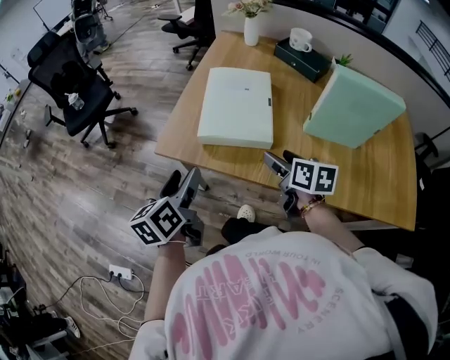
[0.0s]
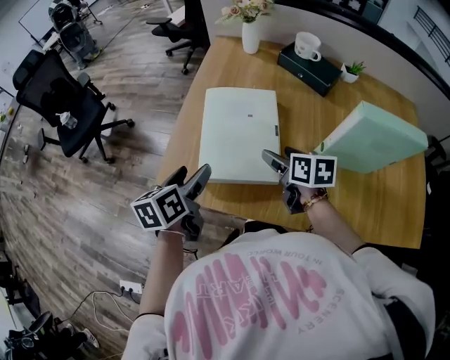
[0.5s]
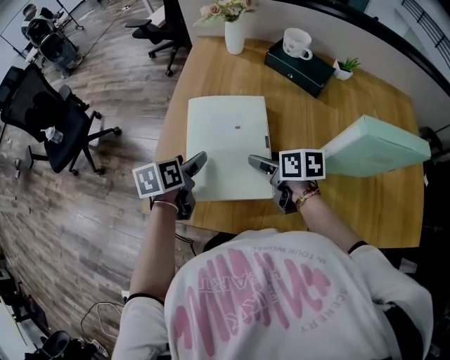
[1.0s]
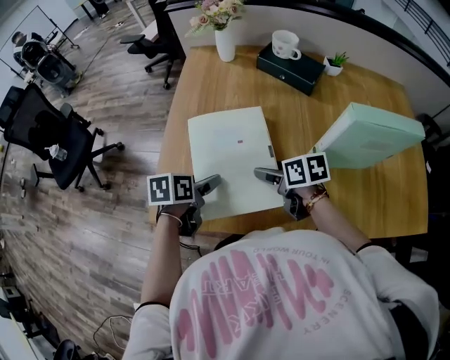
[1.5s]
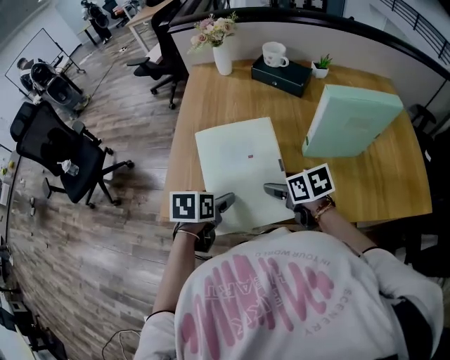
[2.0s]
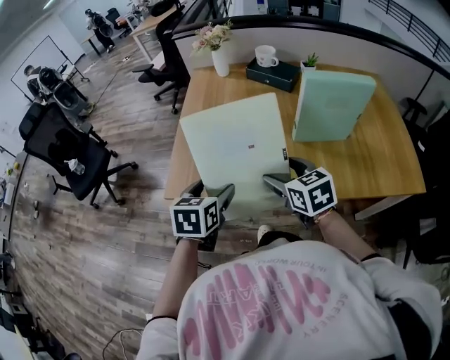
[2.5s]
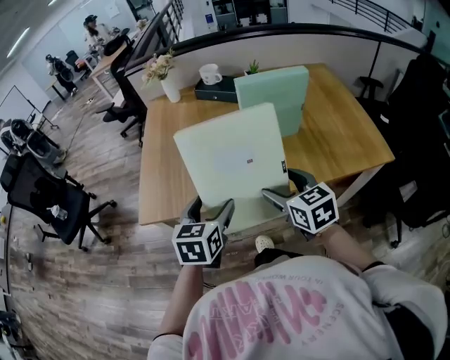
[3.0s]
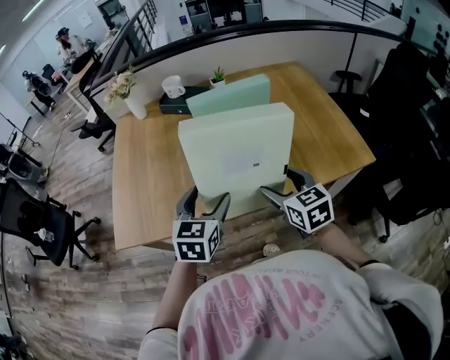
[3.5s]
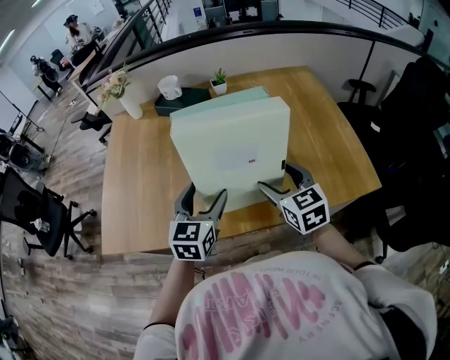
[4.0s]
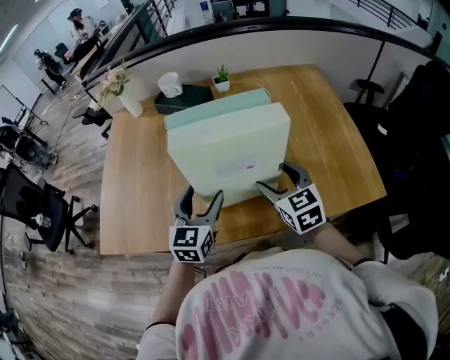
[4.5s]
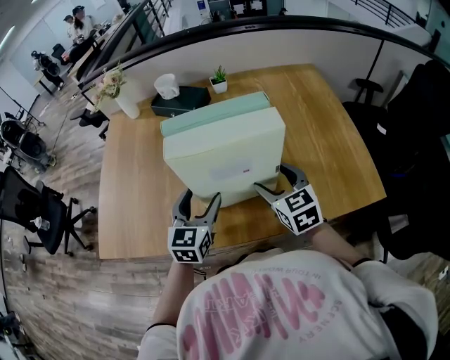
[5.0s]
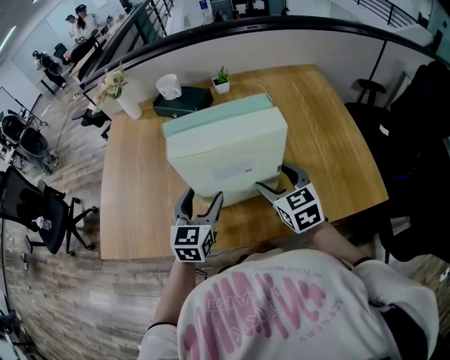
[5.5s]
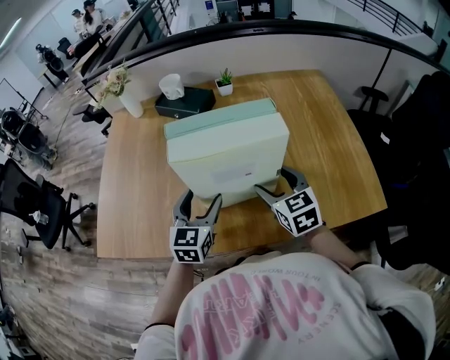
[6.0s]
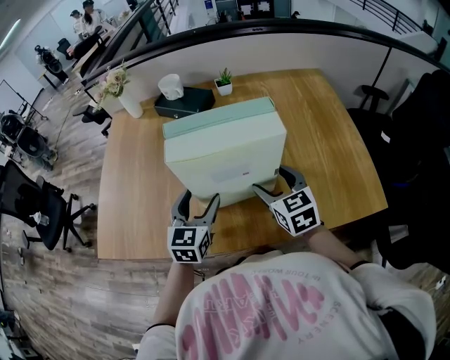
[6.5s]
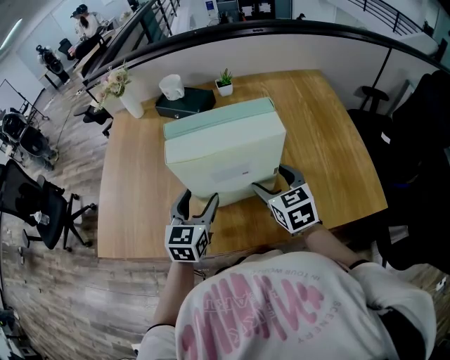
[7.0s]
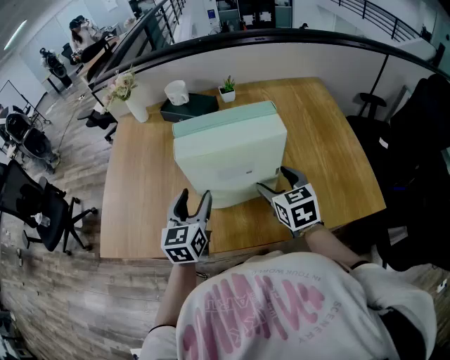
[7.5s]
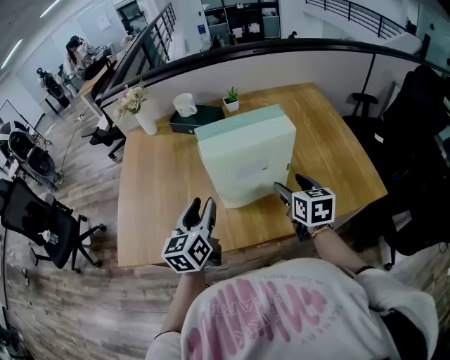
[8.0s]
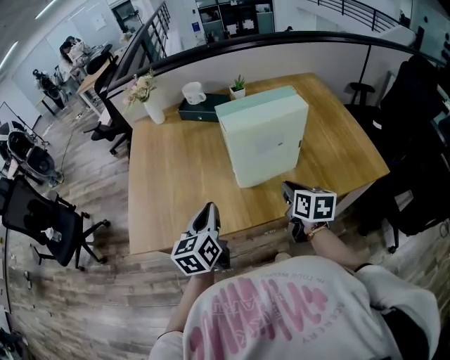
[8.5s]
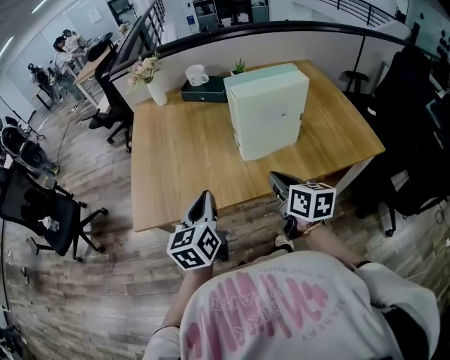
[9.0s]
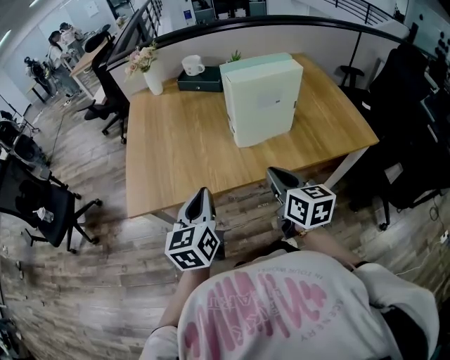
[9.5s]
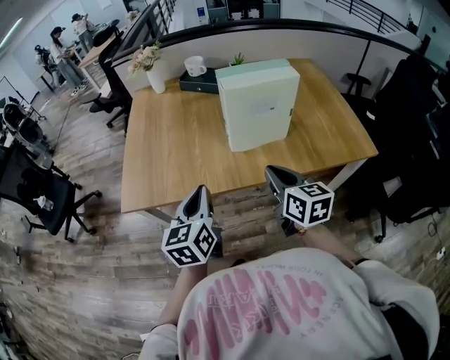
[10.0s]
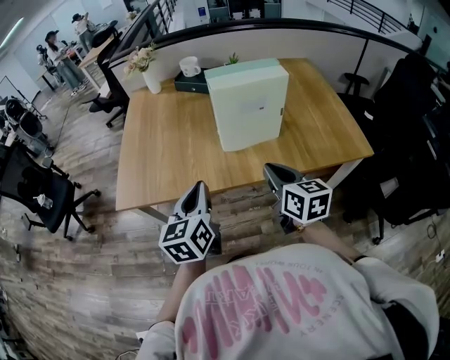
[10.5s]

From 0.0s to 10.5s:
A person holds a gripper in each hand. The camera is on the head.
From 0.0s to 2.0s: The left gripper heads forward, downward and to the right, covering roughly 20 cm, and angles its fingers downward, by approximately 30 degrees. The right gripper goes forward and returns, approximately 20 cm each way.
From 2.0s to 4.0s: The two grippers go some 30 cm to the right. The left gripper points its fingers some 30 degrees further upward. The right gripper swivels some 40 degrees.
From 4.0s to 6.5s: Both grippers travel together forward, approximately 5 cm.
From 6.5s to 8.5s: The left gripper travels to the left and backward by about 15 cm, changes its angle by some 20 degrees, and closes its fingers, while the right gripper shifts roughly 15 cm backward and to the left, turns by roughly 40 degrees, and closes its fingers.
From 8.5s to 10.5s: The right gripper is displaced backward and upward by some 15 cm; the left gripper goes roughly 10 cm backward.

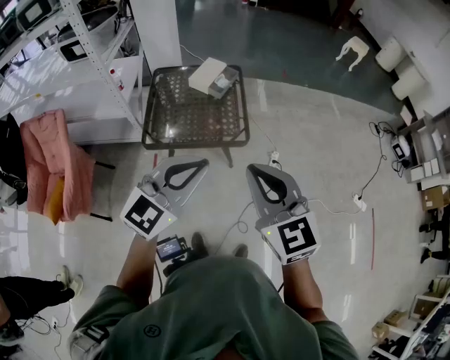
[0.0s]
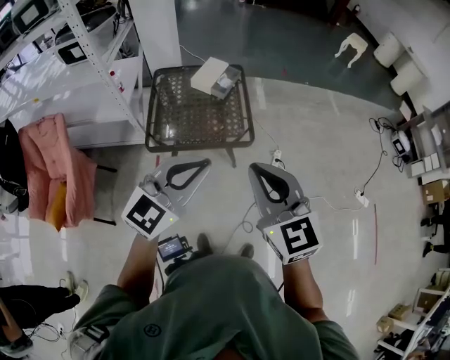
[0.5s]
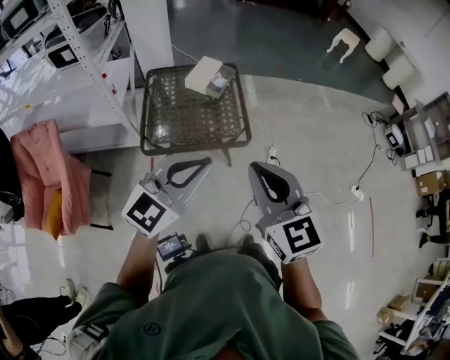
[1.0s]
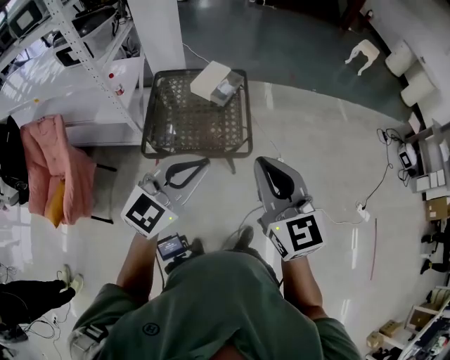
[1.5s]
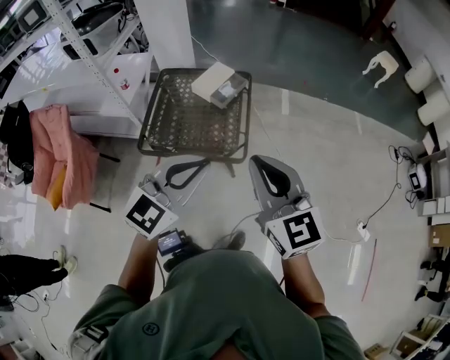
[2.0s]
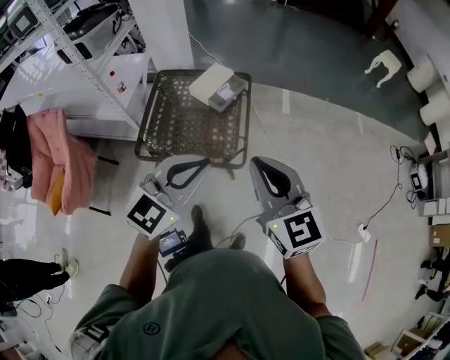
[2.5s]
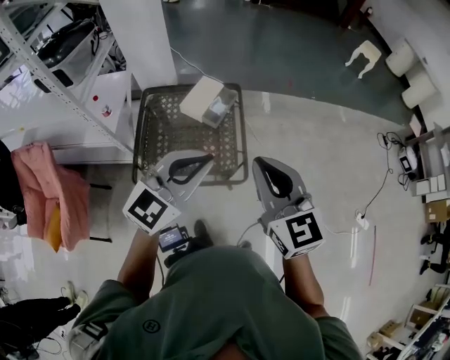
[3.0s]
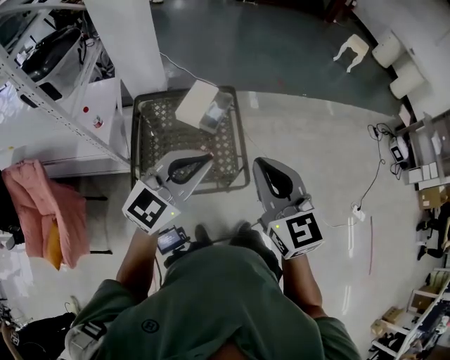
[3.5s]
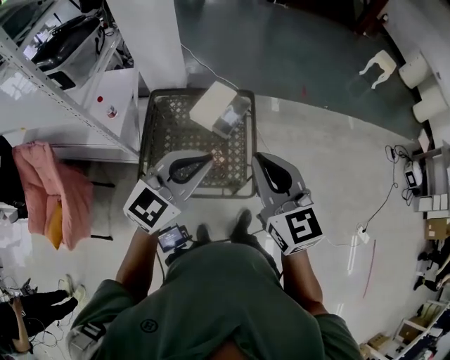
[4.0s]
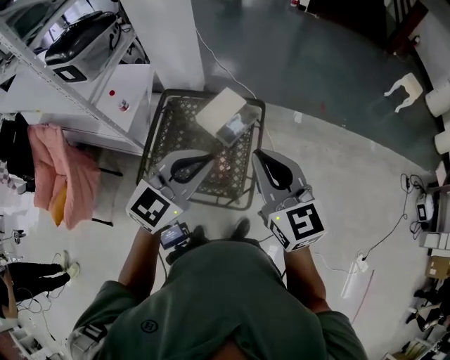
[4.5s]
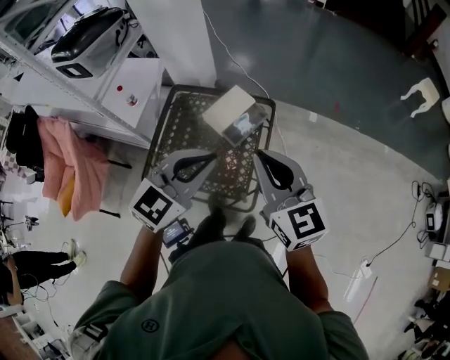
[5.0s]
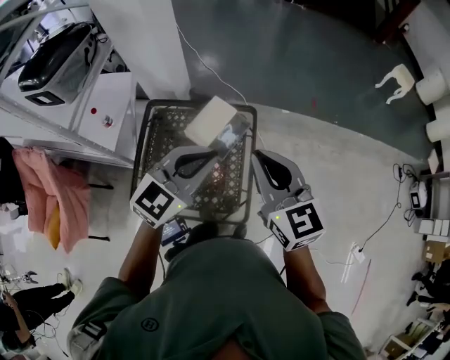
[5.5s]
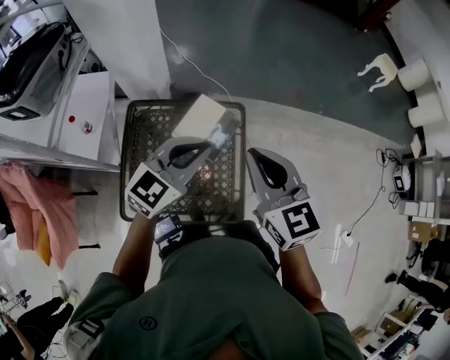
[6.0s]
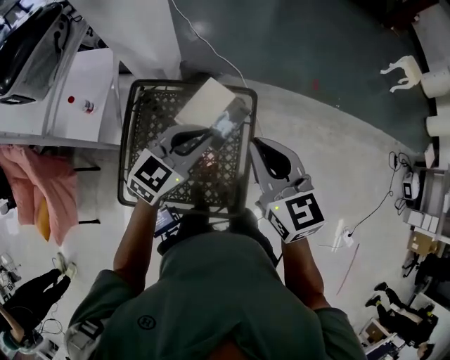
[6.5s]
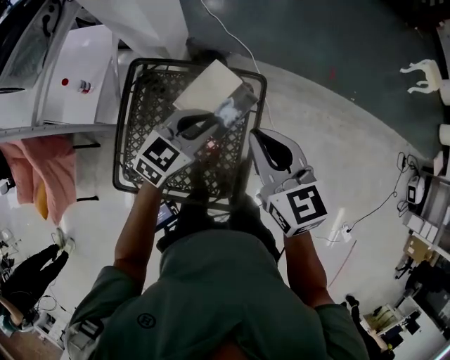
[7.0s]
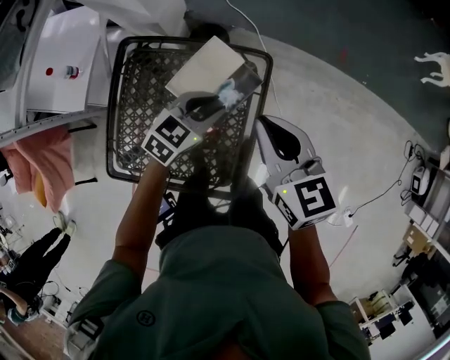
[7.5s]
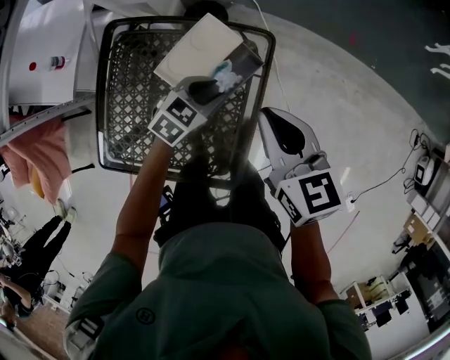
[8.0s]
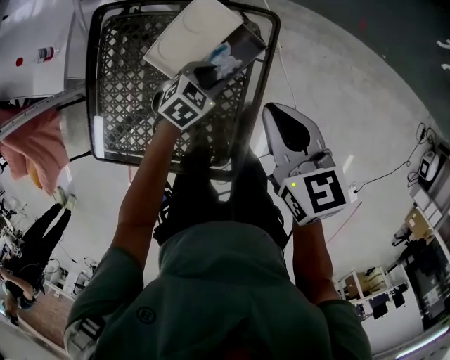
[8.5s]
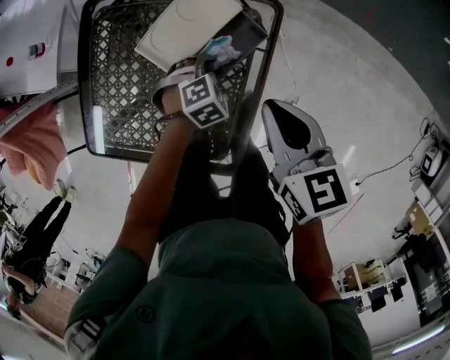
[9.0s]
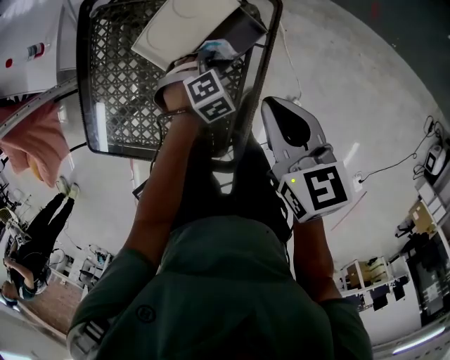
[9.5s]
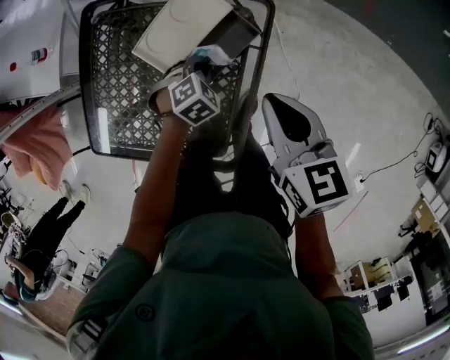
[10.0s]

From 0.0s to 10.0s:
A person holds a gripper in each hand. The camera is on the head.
From 0.0s to 2.0s: The grippers both shift forward and to the right by roughly 20 cm.
From 2.0s to 4.0s: The grippers both shift forward and to the left by some 25 cm.
From 4.0s to 6.0s: Both grippers travel together forward, about 25 cm.
From 6.0s to 8.0s: The left gripper is displaced downward by roughly 40 cm, points its fingers approximately 30 degrees further downward, and opens. The right gripper heads downward and forward, covering about 30 cm, and swivels approximately 20 degrees.
From 8.0s to 10.0s: The left gripper goes about 15 cm downward, turns by approximately 30 degrees, and closes; the right gripper goes approximately 10 cm downward.

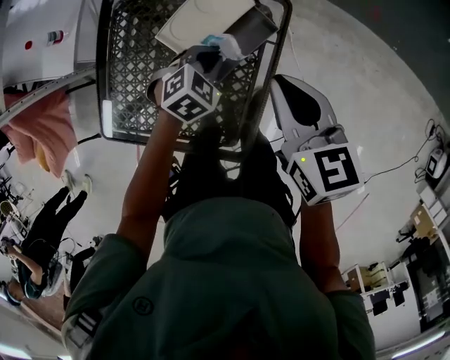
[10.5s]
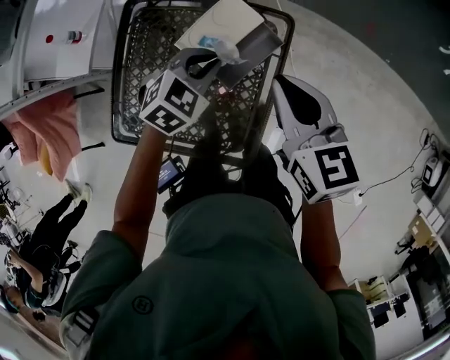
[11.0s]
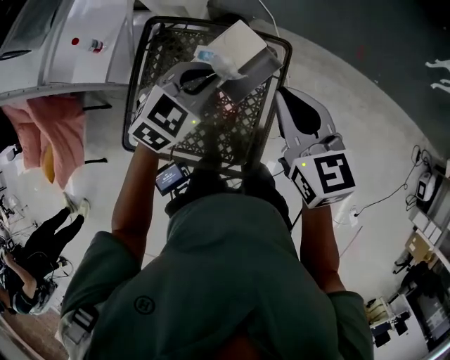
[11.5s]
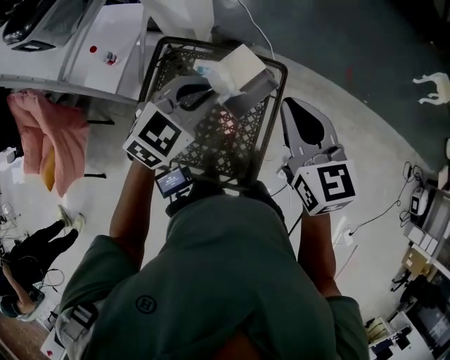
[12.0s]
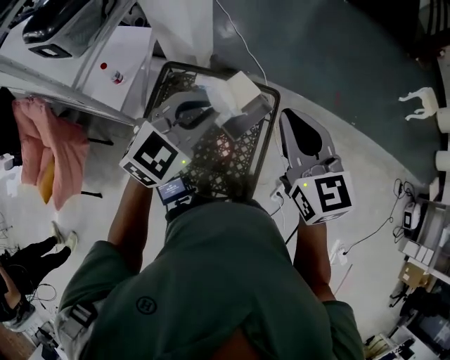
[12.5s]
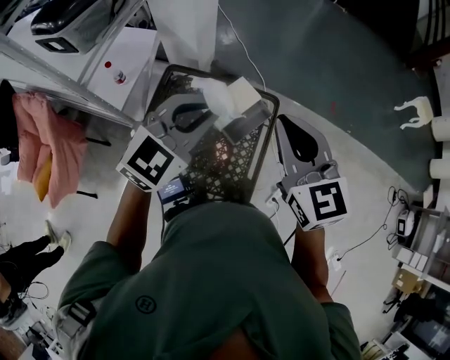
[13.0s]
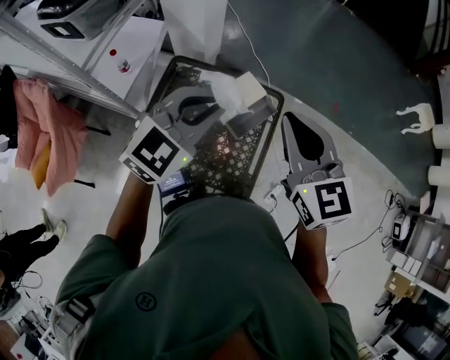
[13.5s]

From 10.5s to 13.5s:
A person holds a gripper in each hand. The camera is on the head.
From 10.5s to 12.0s: The right gripper is displaced upward and backward by approximately 20 cm, and changes its angle by approximately 20 degrees; the left gripper shifts roughly 35 cm upward, and turns by roughly 30 degrees.
From 12.0s to 13.5s: The right gripper travels upward by about 10 cm, while the left gripper travels upward and backward by approximately 10 cm.

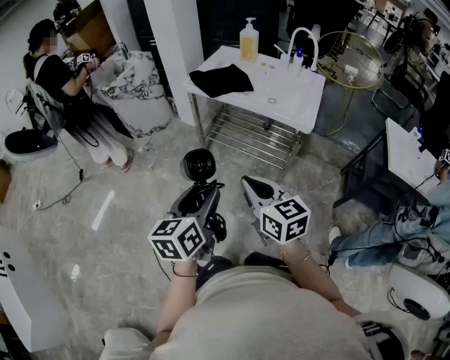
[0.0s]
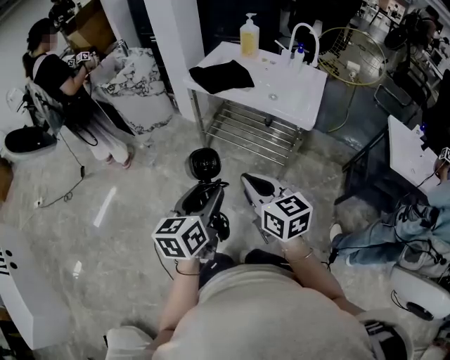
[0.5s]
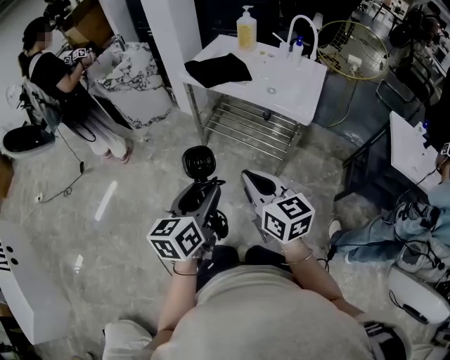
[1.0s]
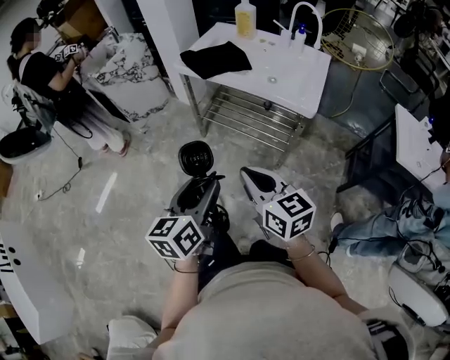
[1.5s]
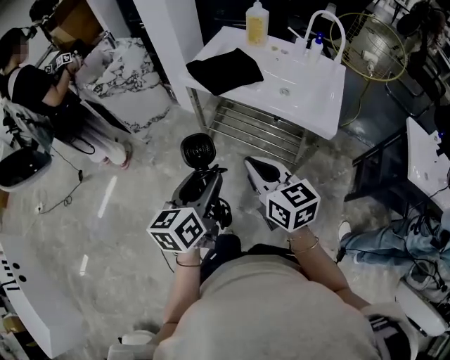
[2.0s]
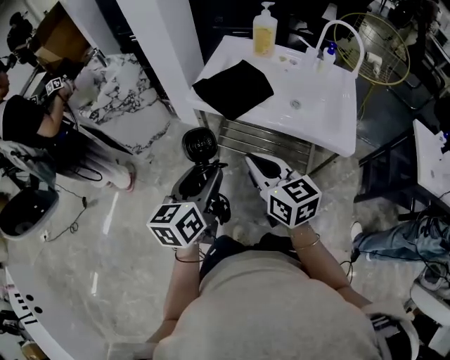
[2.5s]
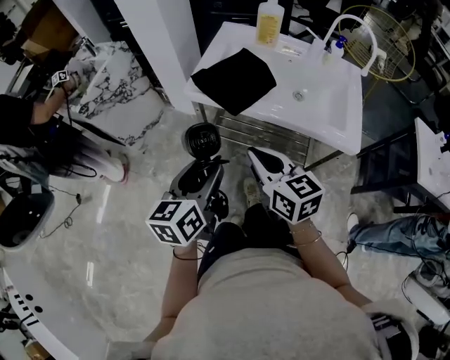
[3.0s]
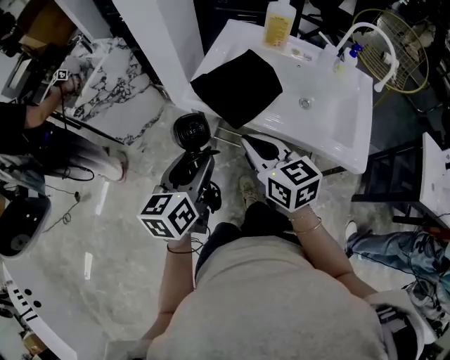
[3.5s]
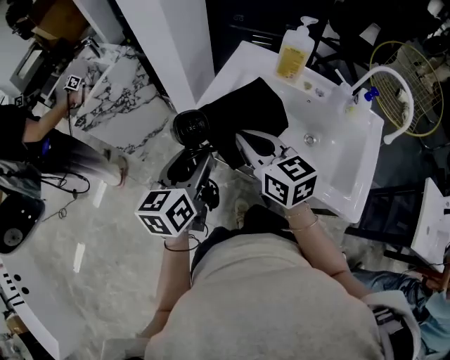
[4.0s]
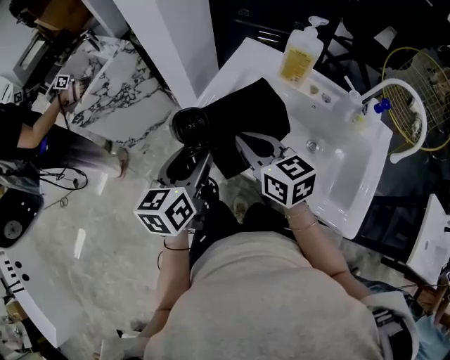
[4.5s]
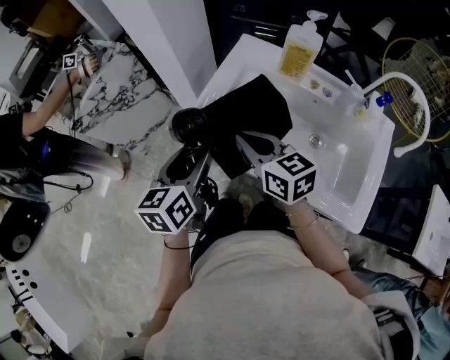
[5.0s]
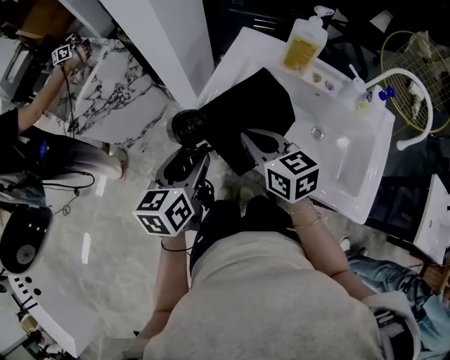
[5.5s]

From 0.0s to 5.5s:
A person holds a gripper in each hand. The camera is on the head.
From 0.0s to 2.0s: Both grippers travel together forward, some 15 cm.
From 2.0s to 3.5s: The grippers both shift forward by roughly 25 cm.
From 3.5s to 5.5s: The two grippers go about 15 cm forward.
